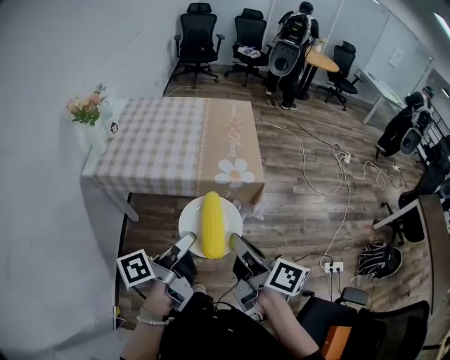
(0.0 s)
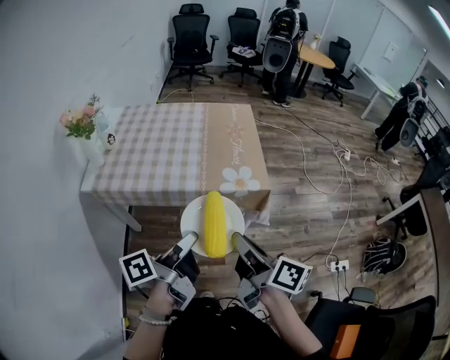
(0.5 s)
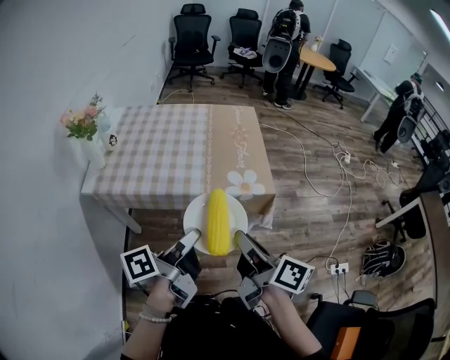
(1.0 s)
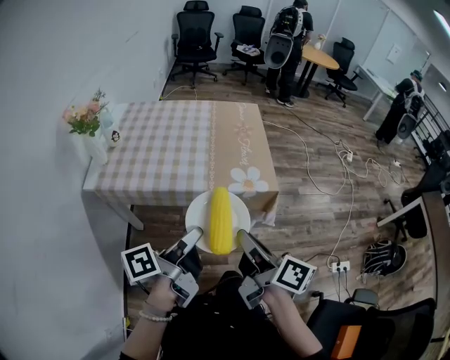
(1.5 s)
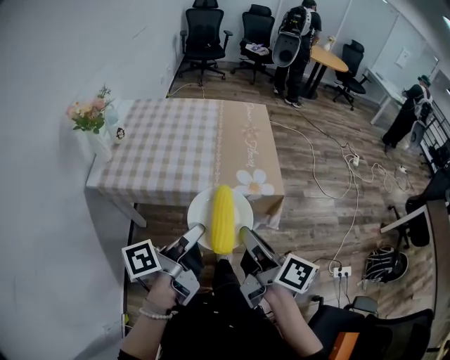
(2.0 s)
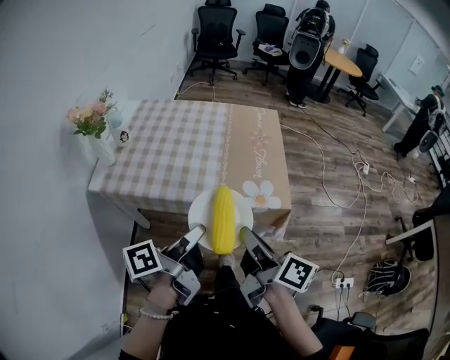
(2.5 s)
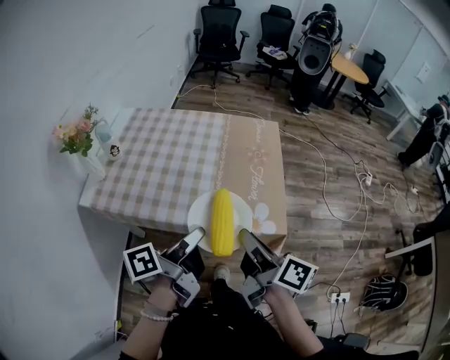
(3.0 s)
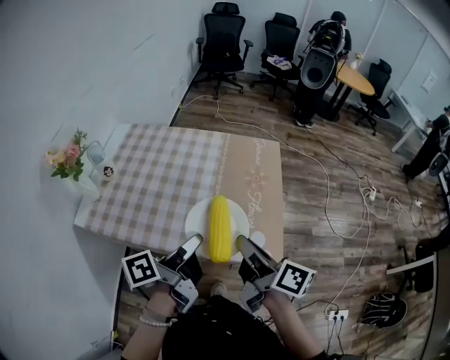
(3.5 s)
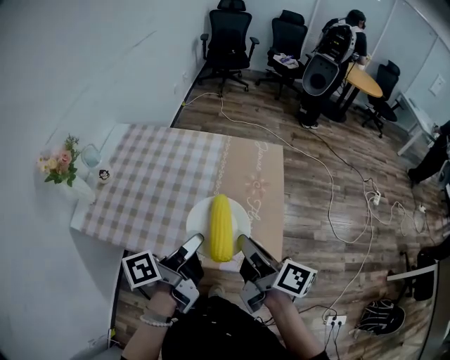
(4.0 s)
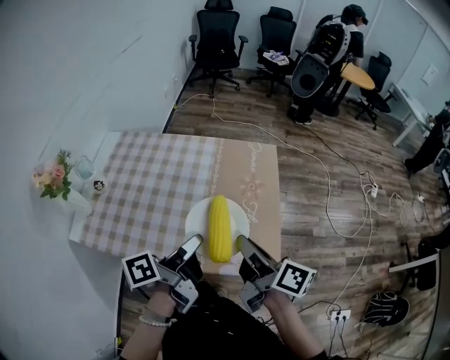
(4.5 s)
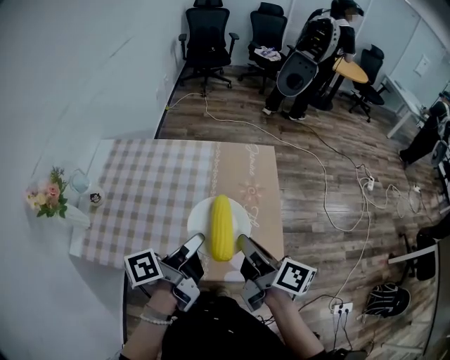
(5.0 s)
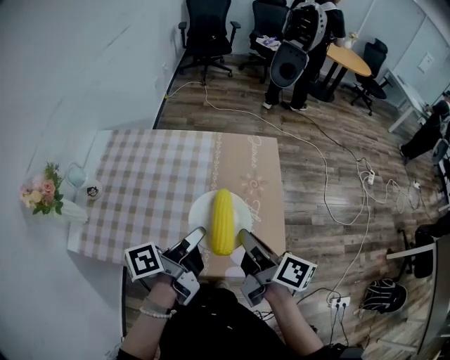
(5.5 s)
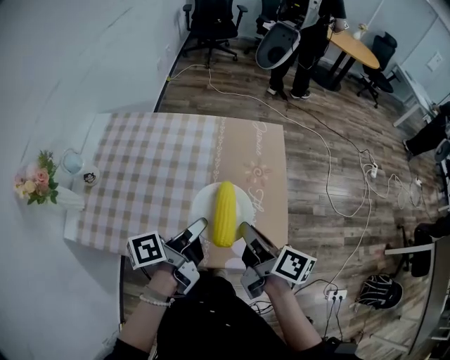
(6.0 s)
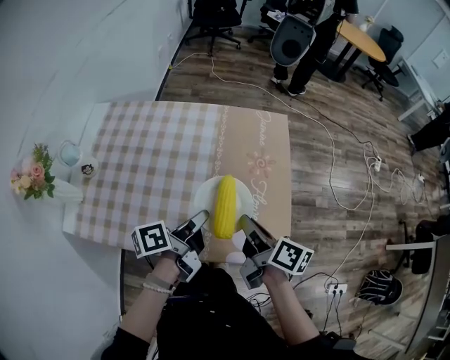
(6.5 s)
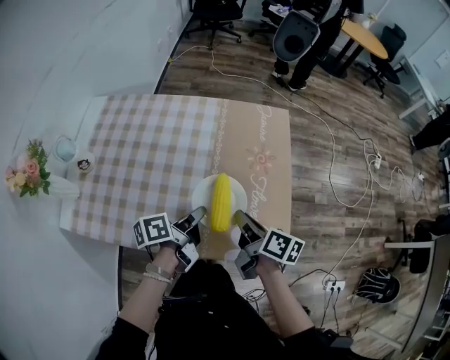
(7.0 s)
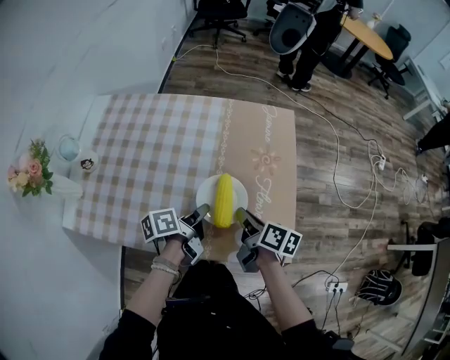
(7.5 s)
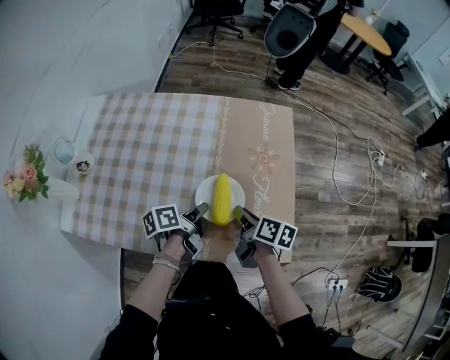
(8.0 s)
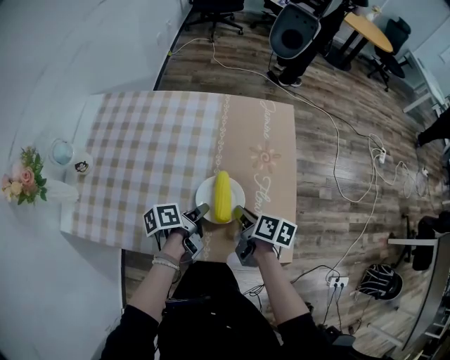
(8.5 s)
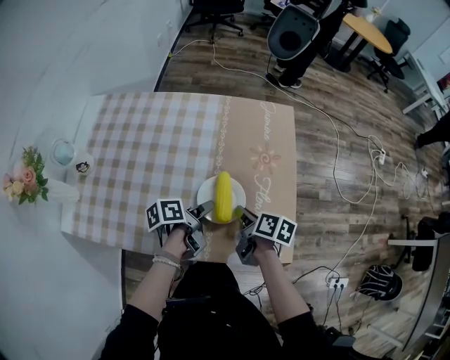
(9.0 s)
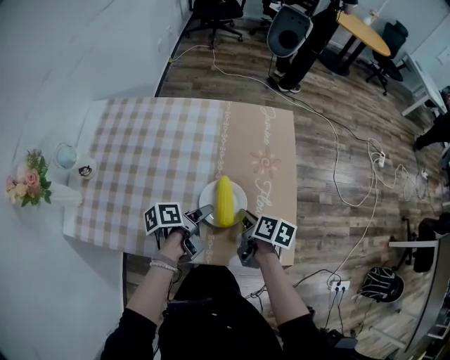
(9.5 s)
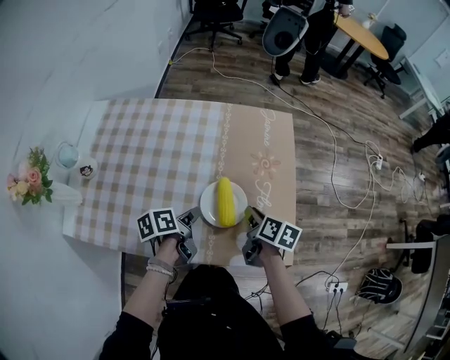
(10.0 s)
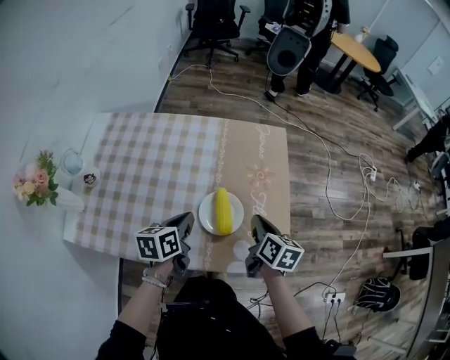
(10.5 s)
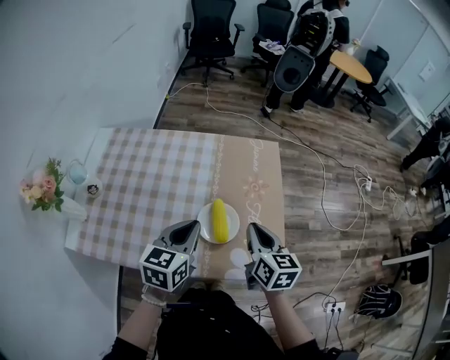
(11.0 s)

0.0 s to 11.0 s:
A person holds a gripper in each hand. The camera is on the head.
0.0 to 2.0 s: Both grippers move forward and to the left, approximately 10 cm.
2.0 to 3.5 s: Both grippers move forward, some 25 cm.
3.5 to 5.5 s: The grippers both shift forward by about 10 cm.
5.5 to 7.5 s: The grippers both shift downward by approximately 20 cm. The right gripper swivels about 20 degrees.
7.5 to 9.0 s: The left gripper opens, while the right gripper is displaced downward by some 5 cm.
9.0 to 11.0 s: Both grippers travel together upward, approximately 20 cm. The left gripper rotates around the line of its fingers by some 60 degrees, clockwise from behind, and closes its fingers. The right gripper swivels approximately 40 degrees.

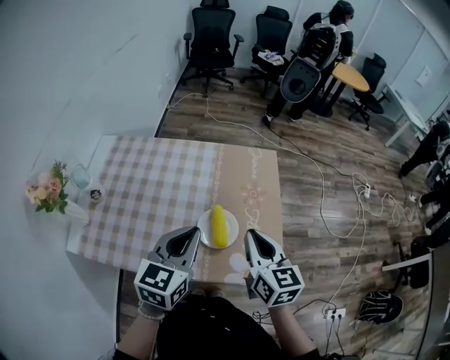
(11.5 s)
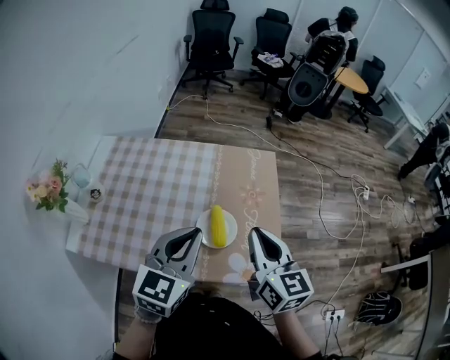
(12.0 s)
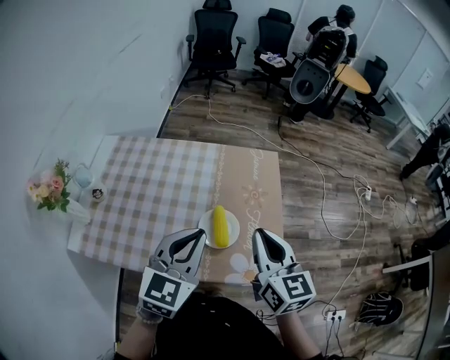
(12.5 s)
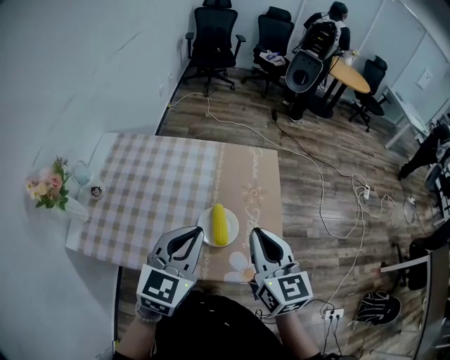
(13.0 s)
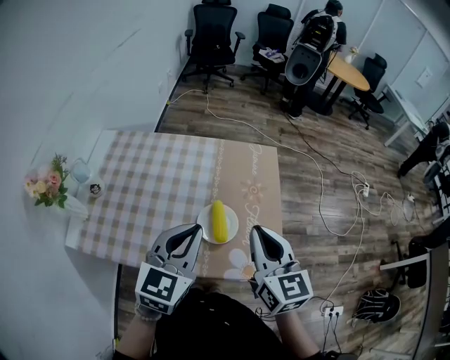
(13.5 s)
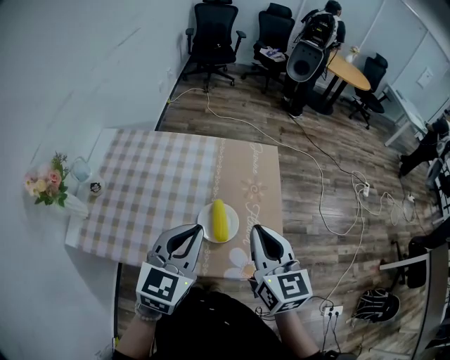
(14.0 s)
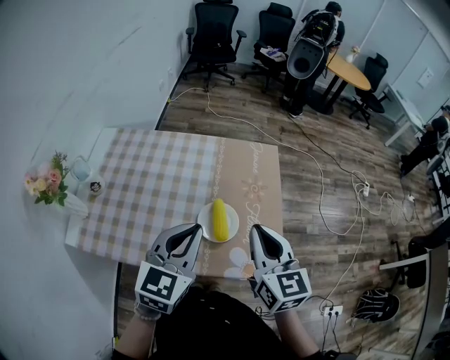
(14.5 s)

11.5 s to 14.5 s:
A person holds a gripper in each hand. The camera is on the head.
11.5 to 13.0 s: The right gripper travels upward by roughly 5 cm.
13.0 to 14.5 s: Both grippers stay put.

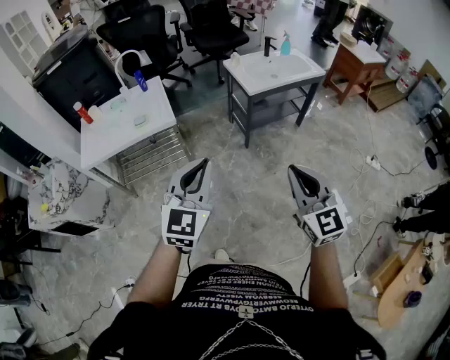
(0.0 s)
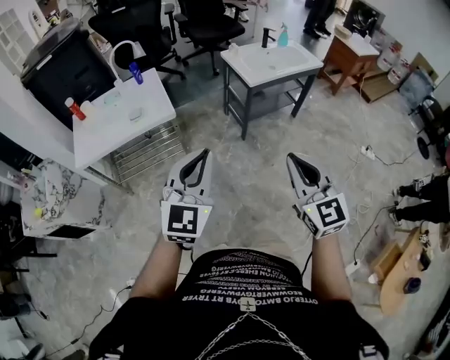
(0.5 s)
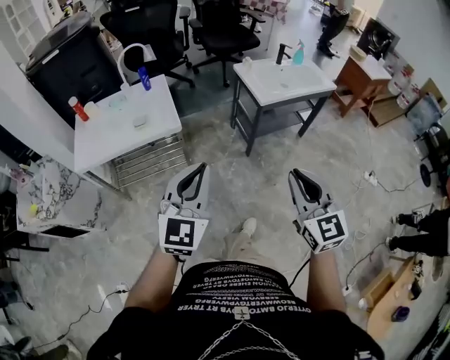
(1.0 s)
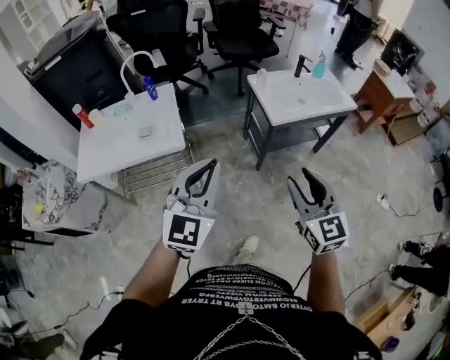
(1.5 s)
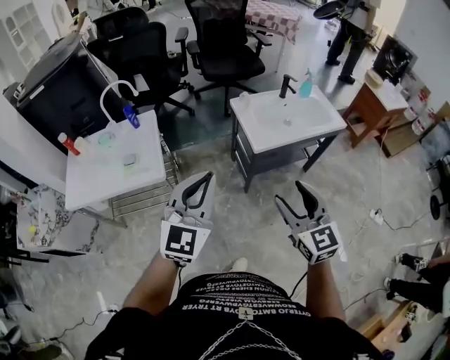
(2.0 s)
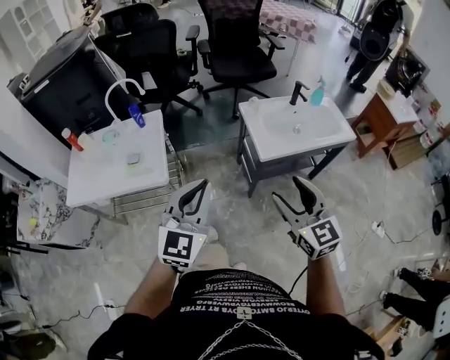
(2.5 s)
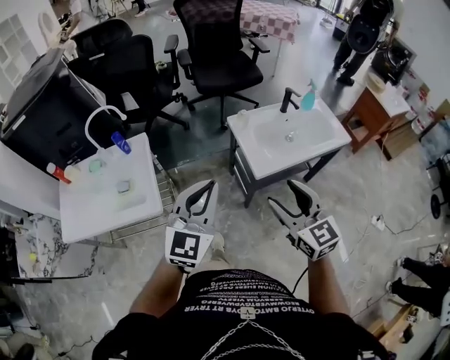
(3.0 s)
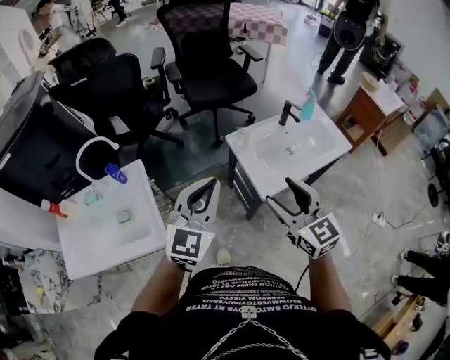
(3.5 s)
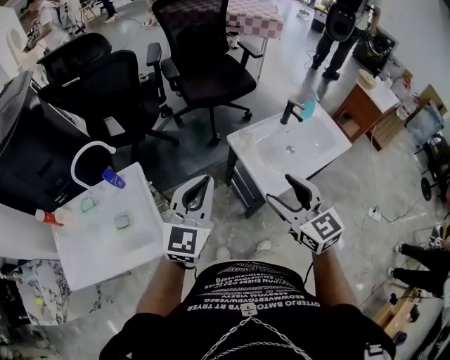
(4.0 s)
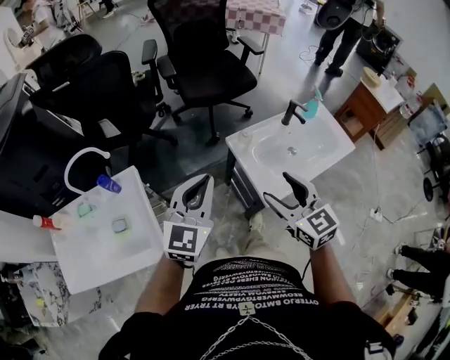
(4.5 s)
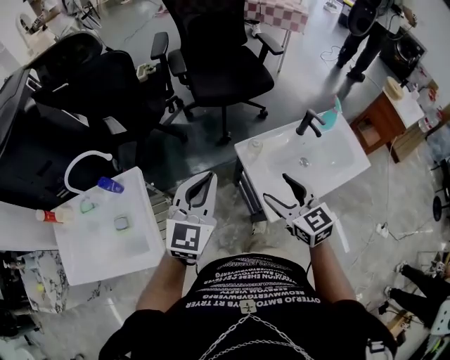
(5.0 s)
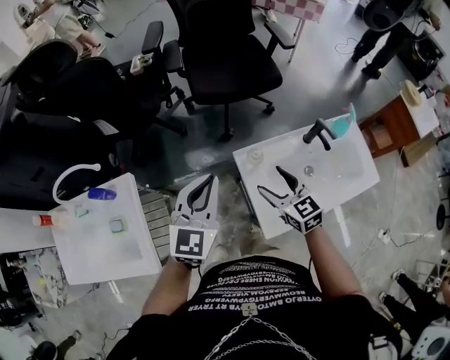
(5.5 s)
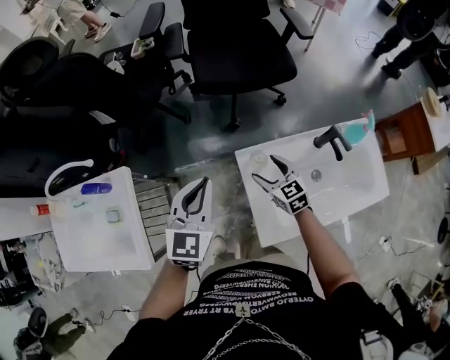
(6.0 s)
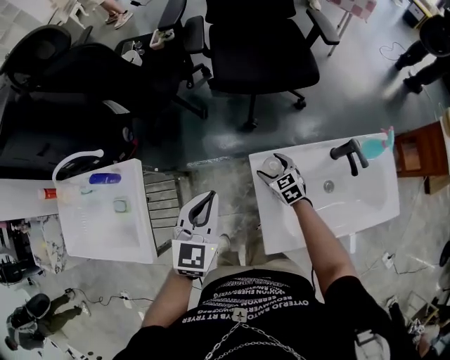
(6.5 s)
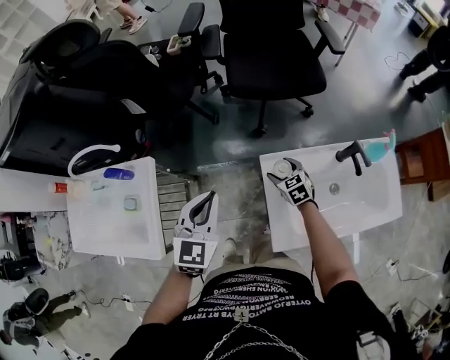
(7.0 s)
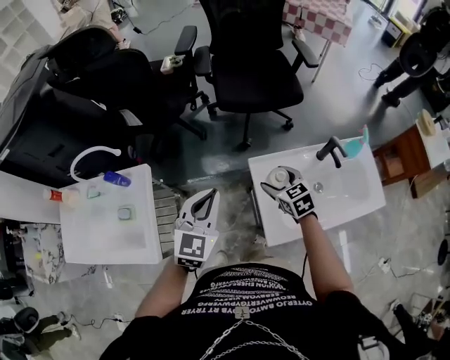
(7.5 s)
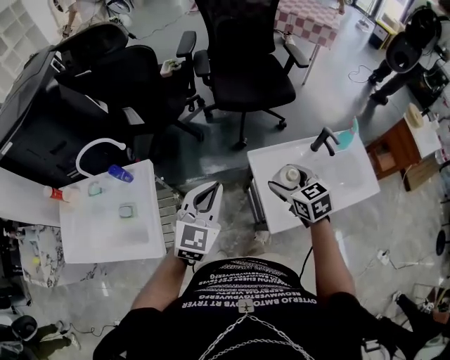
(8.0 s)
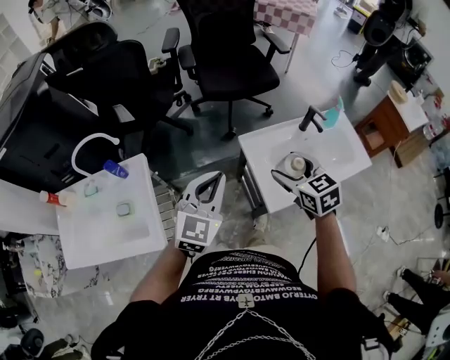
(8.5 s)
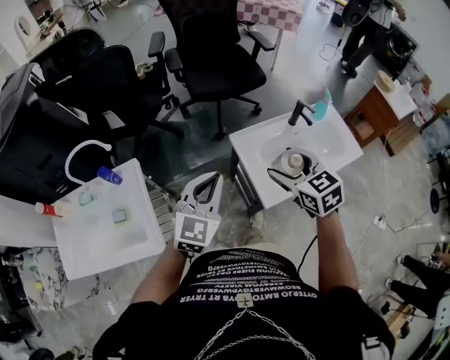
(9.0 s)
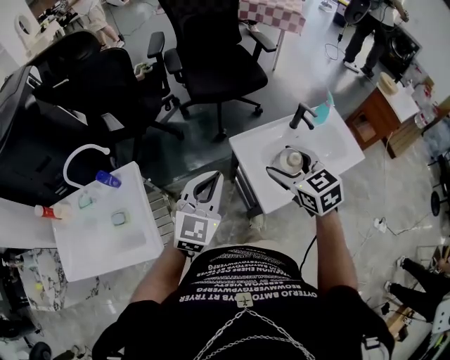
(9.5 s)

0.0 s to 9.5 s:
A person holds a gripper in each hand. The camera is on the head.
0.0 to 2.0 s: Both grippers travel together forward, approximately 35 cm. The right gripper opens up.
2.0 to 4.0 s: The two grippers go about 35 cm forward.
4.0 to 5.5 s: The right gripper is displaced forward and downward by roughly 35 cm, while the left gripper heads forward and to the right, covering roughly 25 cm.
5.5 to 7.5 s: The right gripper goes downward and returns, roughly 25 cm each way; the left gripper travels downward and back again, roughly 10 cm each way.
7.5 to 9.5 s: The right gripper goes approximately 25 cm upward and backward. The left gripper is displaced backward by roughly 10 cm.

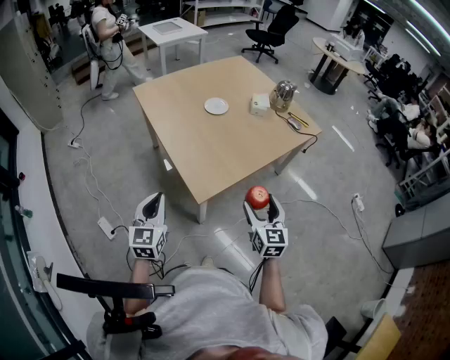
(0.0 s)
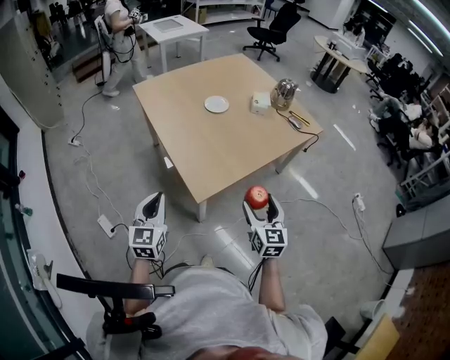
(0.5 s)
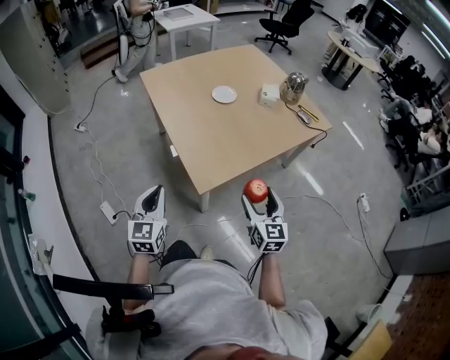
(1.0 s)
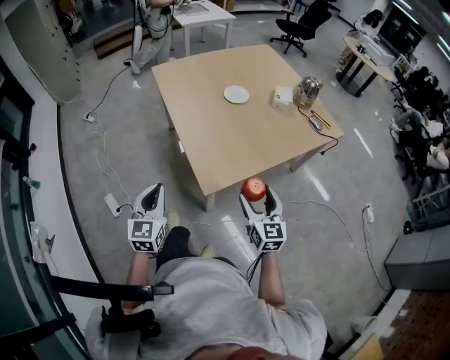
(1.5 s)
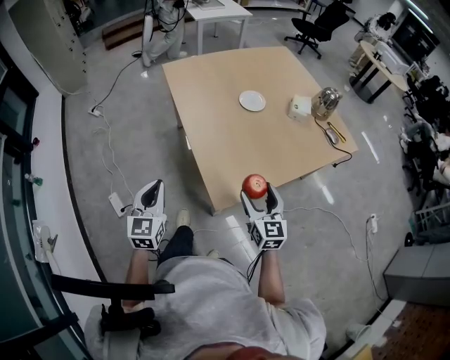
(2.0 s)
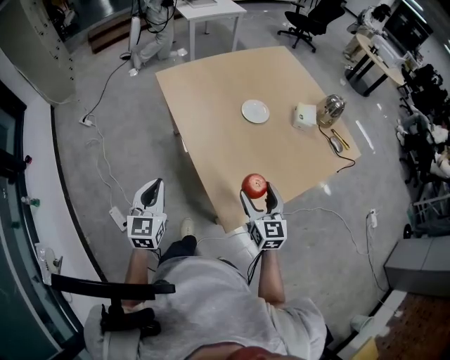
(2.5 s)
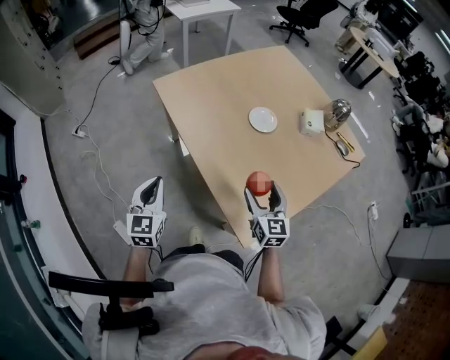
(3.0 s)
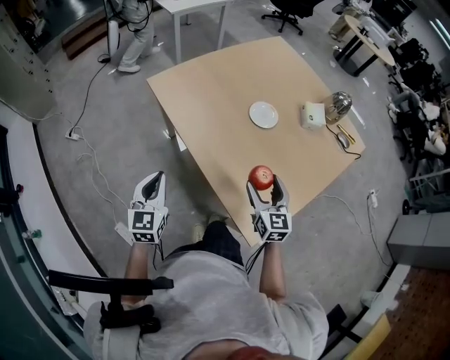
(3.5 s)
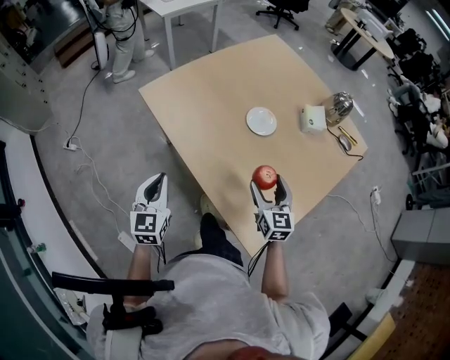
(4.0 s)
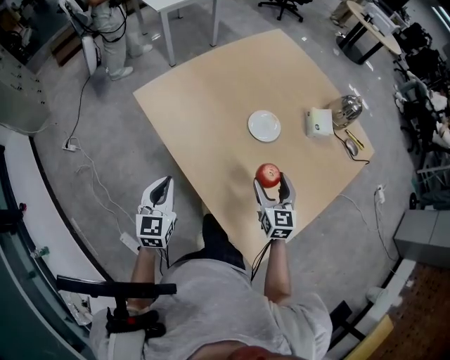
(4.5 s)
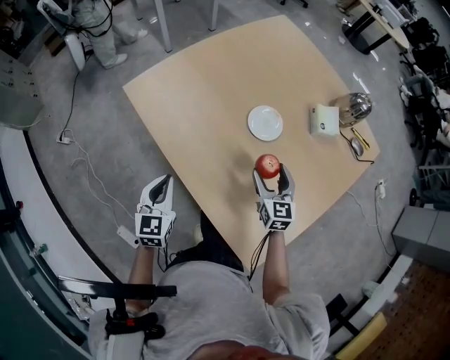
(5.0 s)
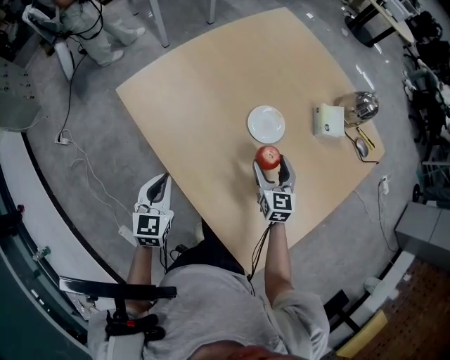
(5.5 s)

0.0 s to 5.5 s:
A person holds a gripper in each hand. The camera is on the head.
0.0 to 2.0 s: Both grippers travel together forward and to the left, approximately 15 cm.
2.0 to 3.5 s: The grippers both shift forward and to the left by approximately 25 cm.
3.5 to 5.5 s: The two grippers go some 25 cm forward and downward.
